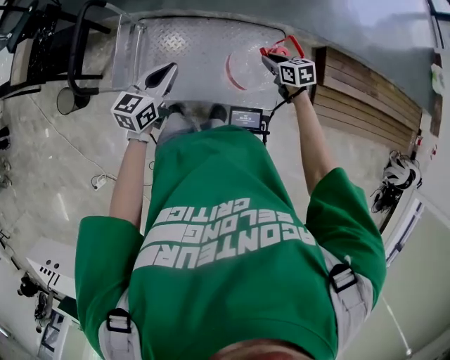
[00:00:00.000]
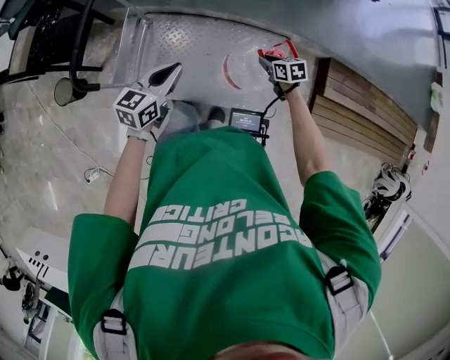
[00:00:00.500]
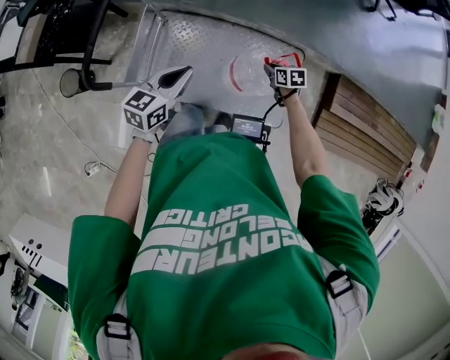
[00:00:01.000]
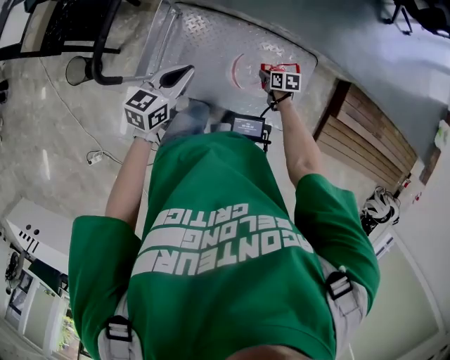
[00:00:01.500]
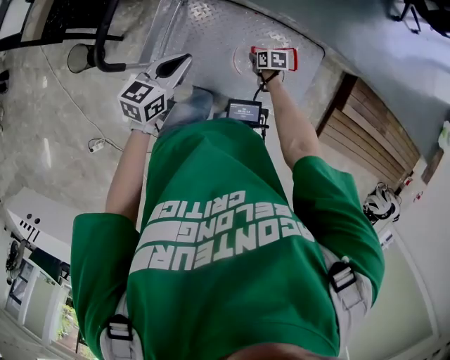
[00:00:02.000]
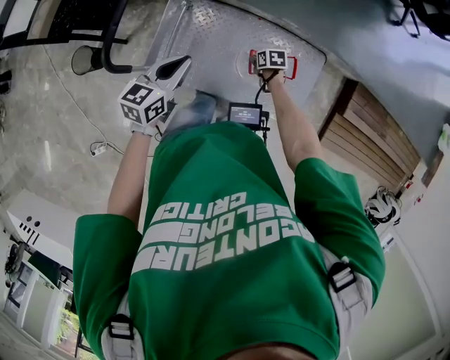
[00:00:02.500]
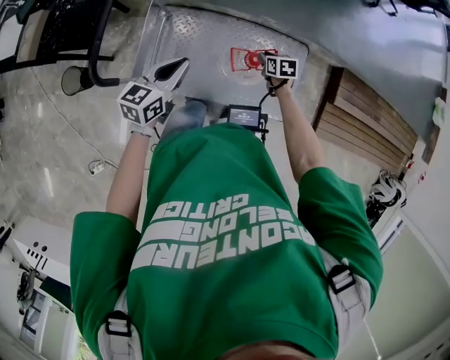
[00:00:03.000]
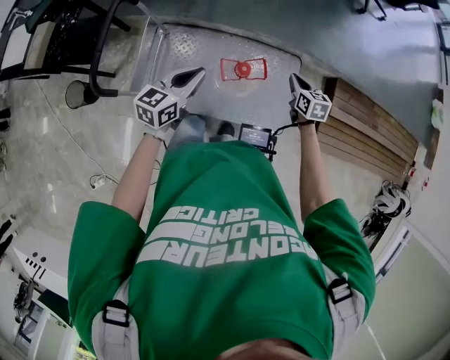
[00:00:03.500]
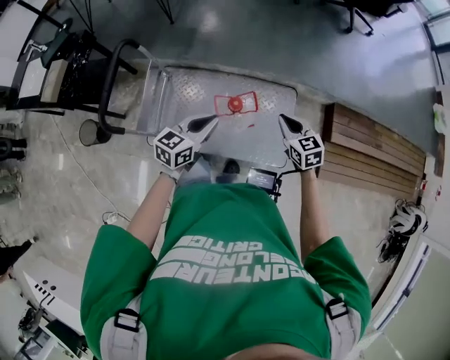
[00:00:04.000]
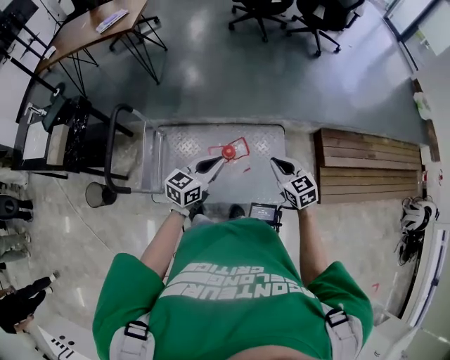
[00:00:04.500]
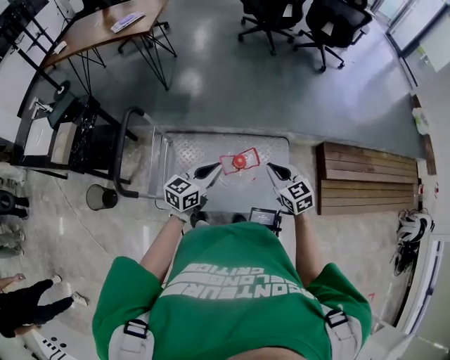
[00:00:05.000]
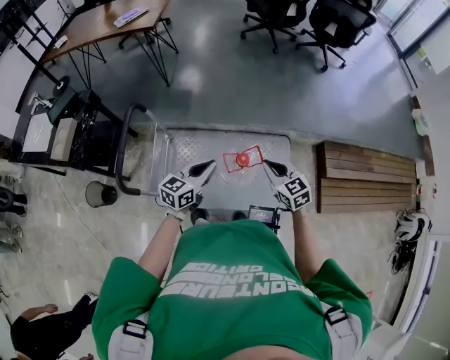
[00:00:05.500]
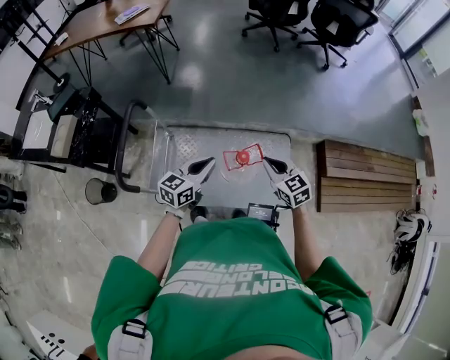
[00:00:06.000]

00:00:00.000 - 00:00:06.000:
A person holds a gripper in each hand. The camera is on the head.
00:00:00.000 - 00:00:02.000: The right gripper is displaced to the left, downward and forward by some 30 cm, and swivels about 20 degrees. Meanwhile the left gripper heads to the left and forward, covering about 15 cm.
00:00:02.000 - 00:00:04.000: The right gripper is displaced upward by about 30 cm, and swivels approximately 40 degrees. Meanwhile the left gripper ends up approximately 20 cm from where it was.
00:00:04.000 - 00:00:06.000: The right gripper shifts some 10 cm to the left and upward. The left gripper travels to the left by roughly 10 cm.

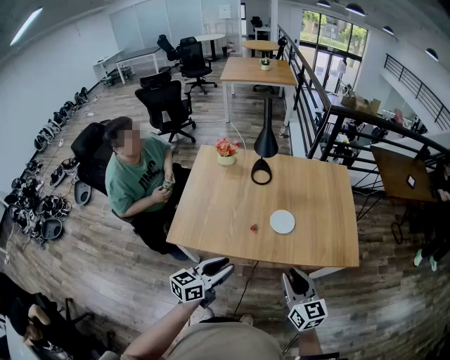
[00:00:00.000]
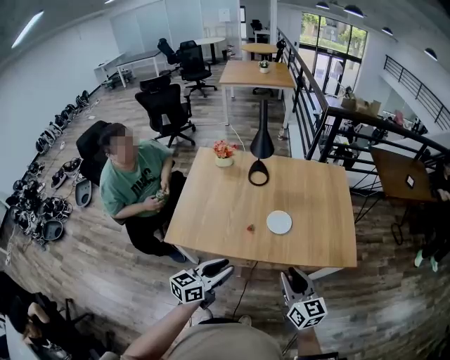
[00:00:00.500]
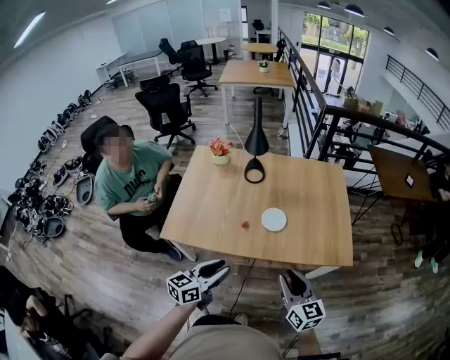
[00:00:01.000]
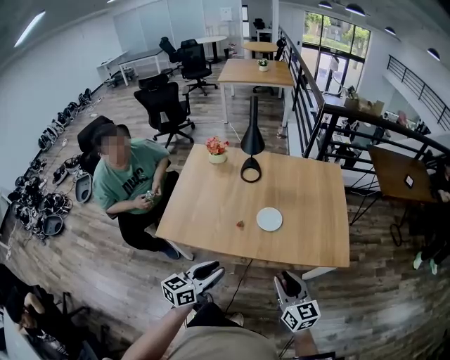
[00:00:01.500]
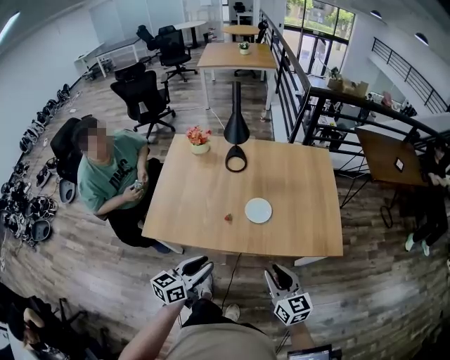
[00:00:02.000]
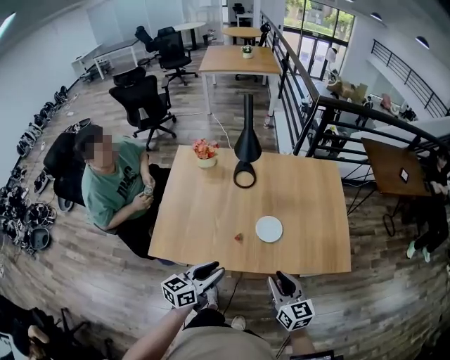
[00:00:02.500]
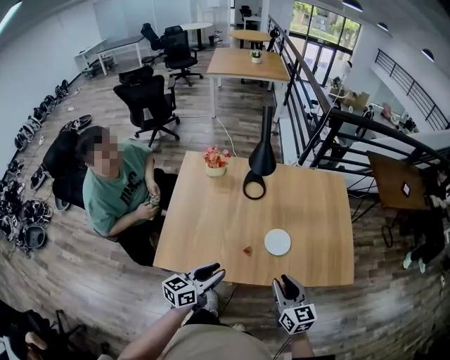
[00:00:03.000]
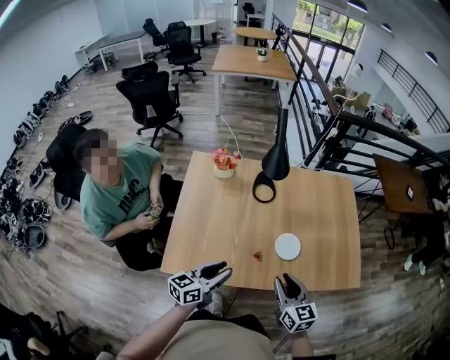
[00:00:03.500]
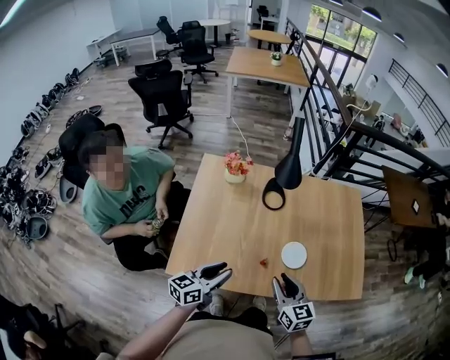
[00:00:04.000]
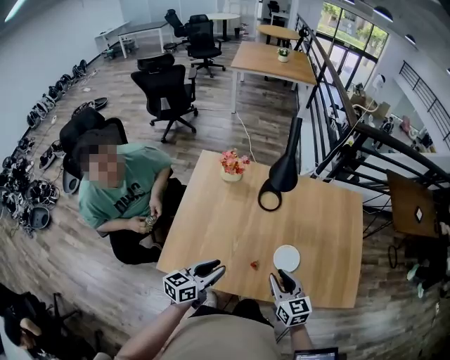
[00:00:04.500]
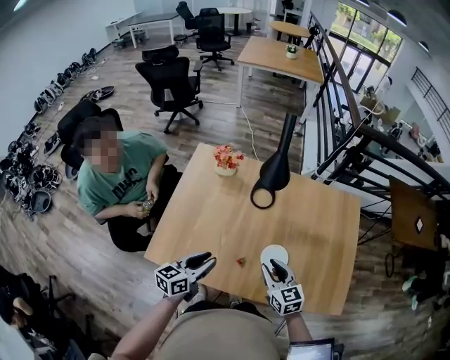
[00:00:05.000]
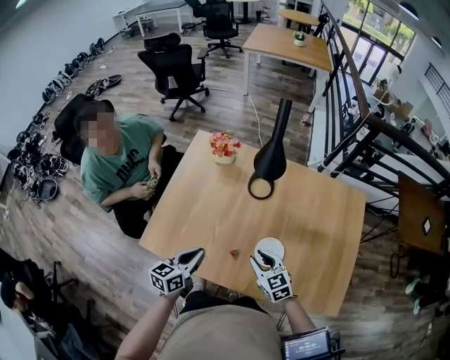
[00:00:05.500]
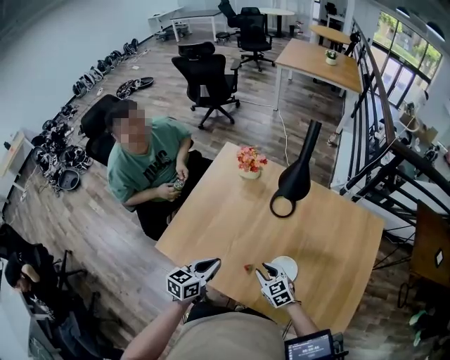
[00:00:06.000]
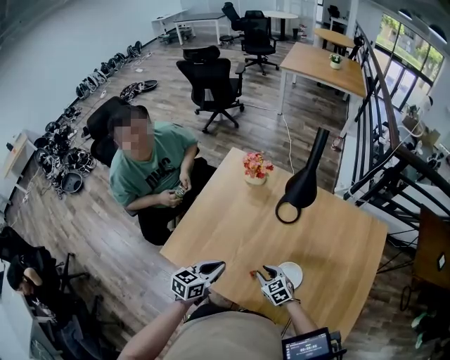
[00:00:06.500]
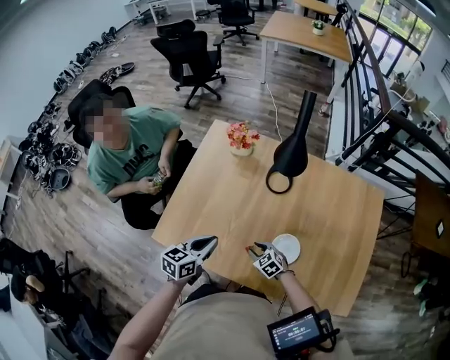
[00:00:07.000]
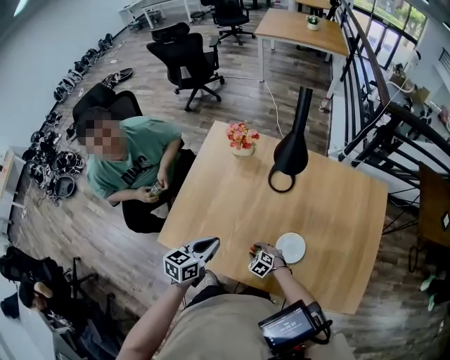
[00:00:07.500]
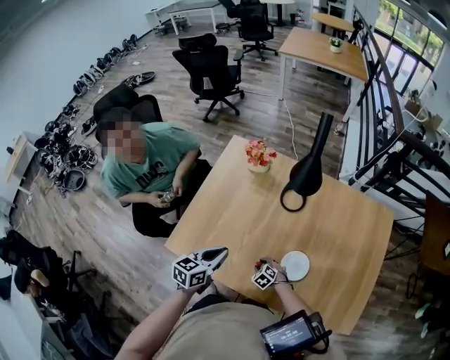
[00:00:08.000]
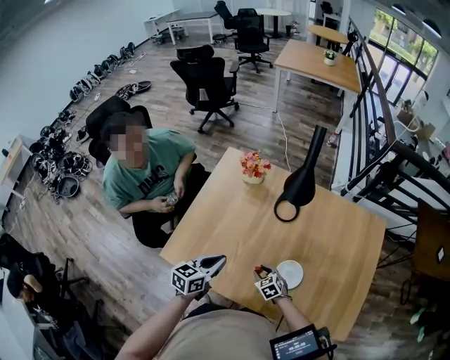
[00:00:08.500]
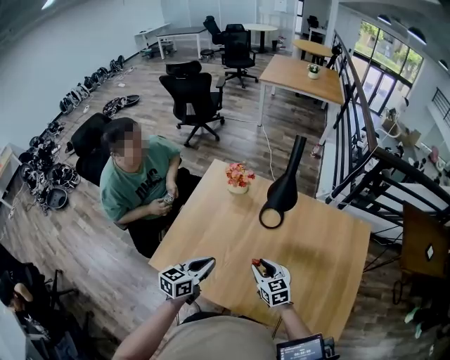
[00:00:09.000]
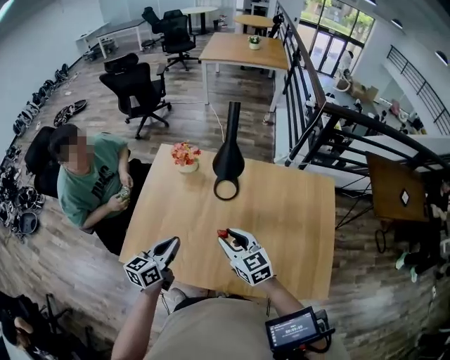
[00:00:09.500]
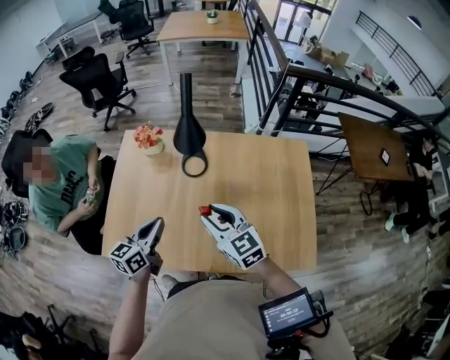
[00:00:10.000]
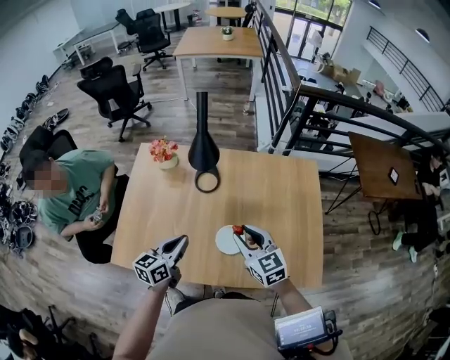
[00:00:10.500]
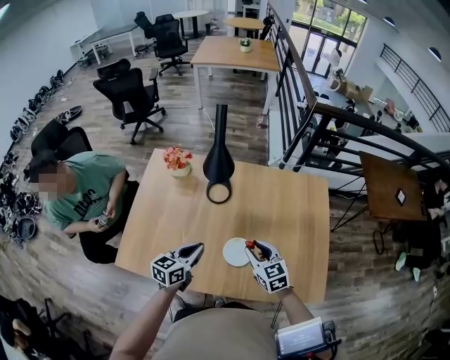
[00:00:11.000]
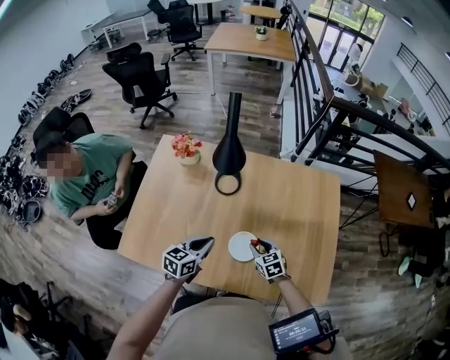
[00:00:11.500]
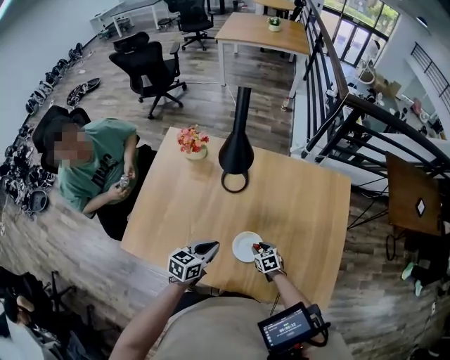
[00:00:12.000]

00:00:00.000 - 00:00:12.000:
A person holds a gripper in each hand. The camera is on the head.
00:00:00.000 - 00:00:02.000: The left gripper changes place by about 5 cm; the right gripper moves to the right, roughly 5 cm.
00:00:02.000 - 00:00:04.000: The two grippers go approximately 25 cm to the left and forward.
00:00:04.000 - 00:00:06.000: The right gripper travels downward by some 20 cm, and rotates roughly 40 degrees. The left gripper moves some 10 cm, swivels some 30 degrees, and closes up.
00:00:06.000 - 00:00:08.000: The right gripper goes some 20 cm downward, and changes its angle by roughly 30 degrees.
00:00:08.000 - 00:00:10.000: The right gripper moves upward, some 40 cm, and tilts its fingers roughly 50 degrees upward; the left gripper heads to the right and upward, covering roughly 15 cm.
00:00:10.000 - 00:00:12.000: The left gripper travels downward and to the right by some 15 cm. Meanwhile the right gripper goes approximately 40 cm downward, and tips its fingers downward by approximately 40 degrees.

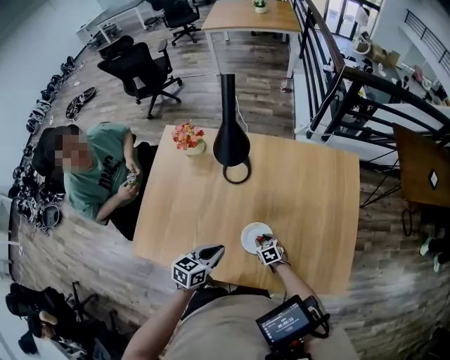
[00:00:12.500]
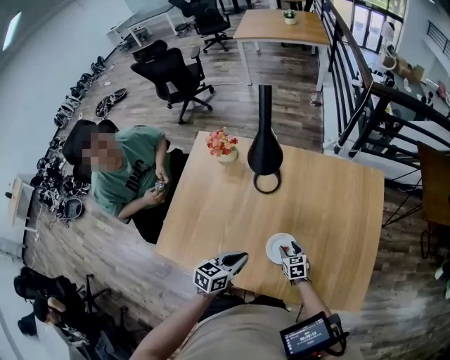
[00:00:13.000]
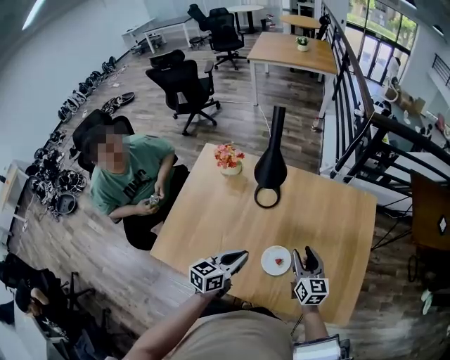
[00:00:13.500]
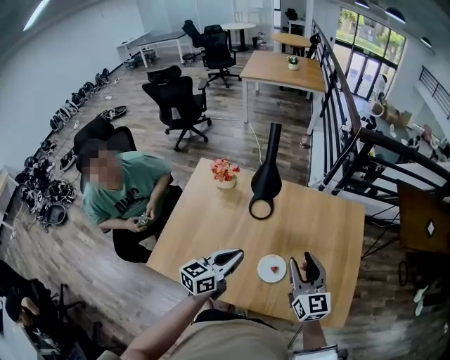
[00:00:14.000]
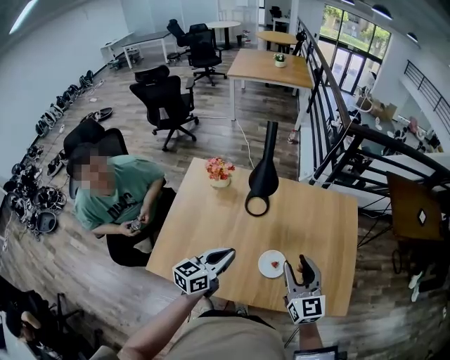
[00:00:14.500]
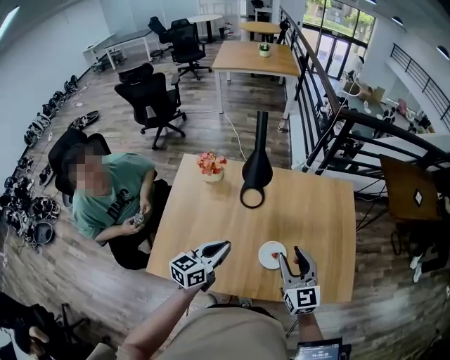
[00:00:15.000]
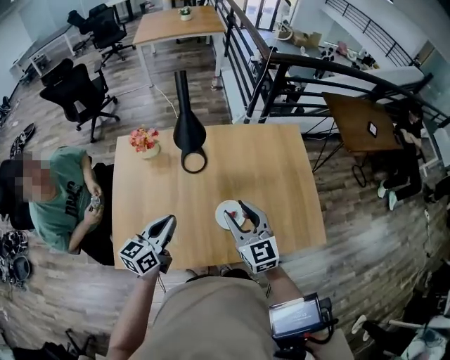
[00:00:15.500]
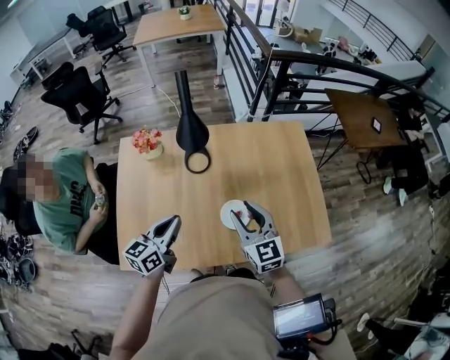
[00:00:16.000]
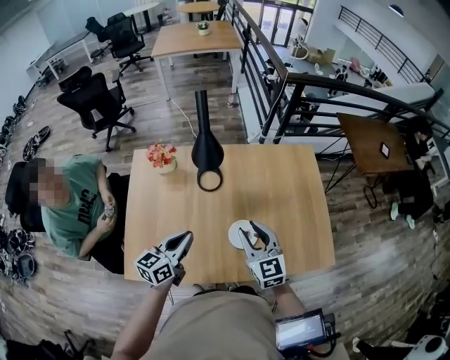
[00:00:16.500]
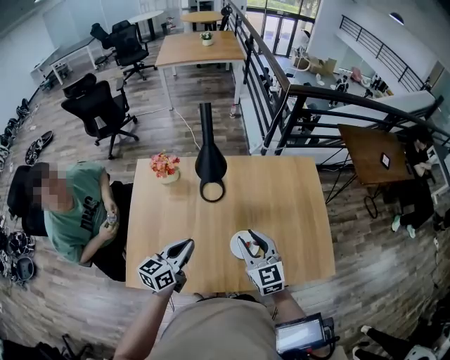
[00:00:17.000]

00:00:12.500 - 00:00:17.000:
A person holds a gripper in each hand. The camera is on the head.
00:00:12.500 - 00:00:14.500: The left gripper heads upward and to the left, covering approximately 20 cm, and changes its angle by about 20 degrees; the right gripper is displaced upward by about 50 cm, and angles its fingers upward, by about 50 degrees.
00:00:14.500 - 00:00:17.000: The right gripper moves downward, some 5 cm.

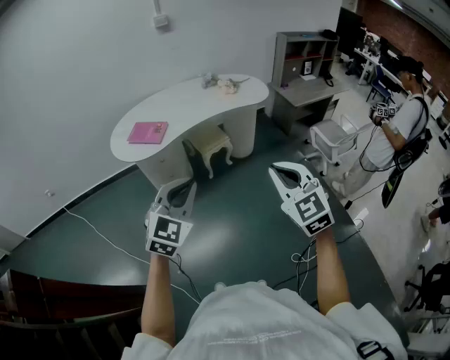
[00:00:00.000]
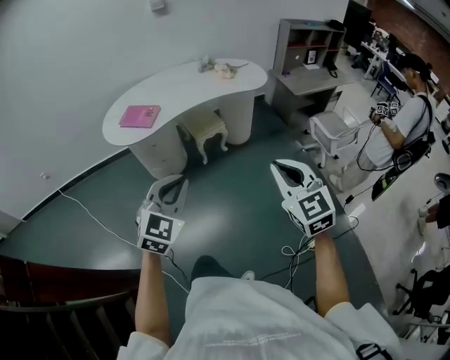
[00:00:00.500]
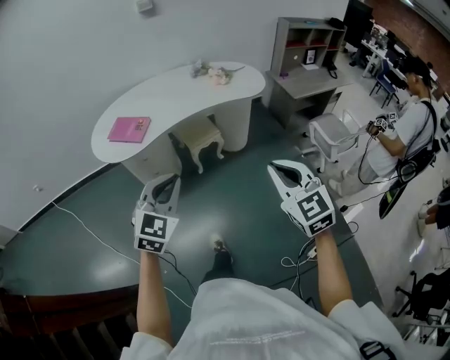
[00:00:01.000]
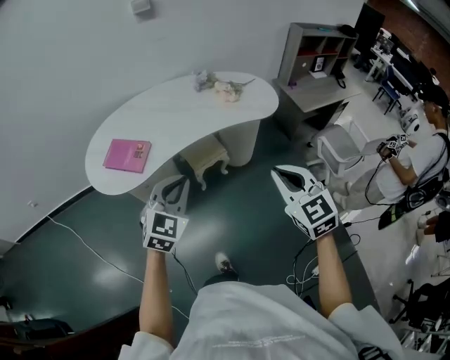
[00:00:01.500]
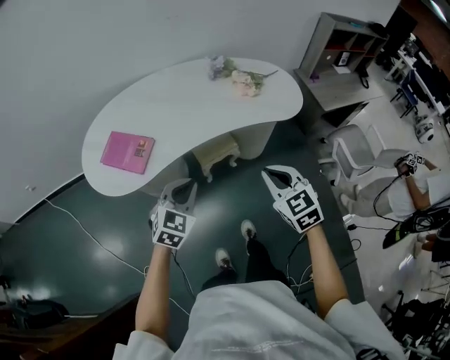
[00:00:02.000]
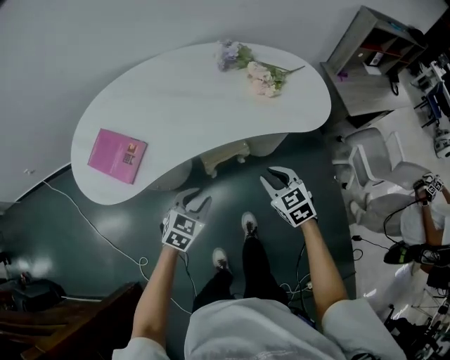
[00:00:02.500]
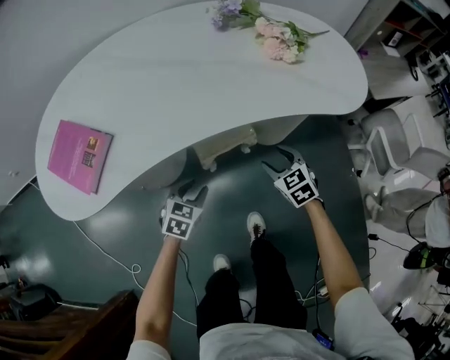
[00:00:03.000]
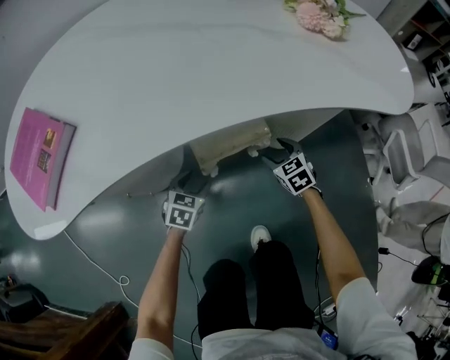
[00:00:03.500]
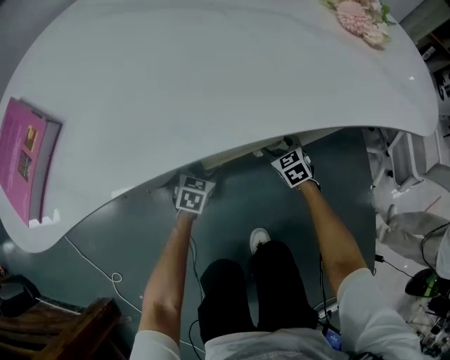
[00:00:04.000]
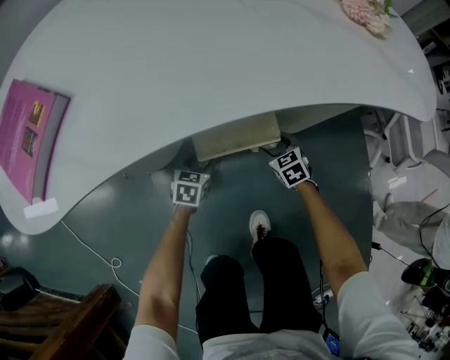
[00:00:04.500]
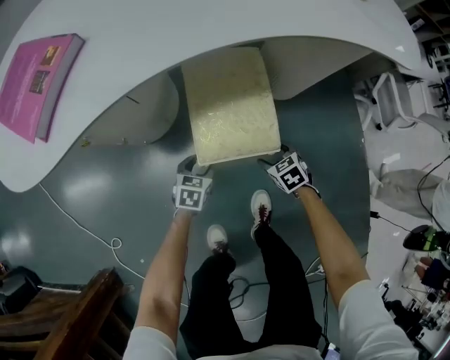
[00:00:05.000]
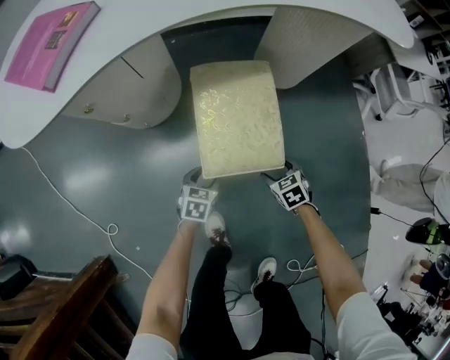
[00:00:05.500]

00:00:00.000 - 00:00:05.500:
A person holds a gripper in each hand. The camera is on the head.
00:00:00.000 - 00:00:02.000: Both grippers are carried forward, some 40 cm. The right gripper swivels roughly 20 degrees. The left gripper moves downward, some 20 cm, and changes its angle by some 20 degrees.
00:00:02.000 - 00:00:03.500: The right gripper moves downward and forward, roughly 60 cm, and opens up. Meanwhile the left gripper moves downward, approximately 50 cm, changes its angle by about 30 degrees, and opens its fingers.
00:00:03.500 - 00:00:05.500: The two grippers go roughly 30 cm backward.
